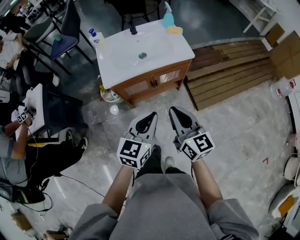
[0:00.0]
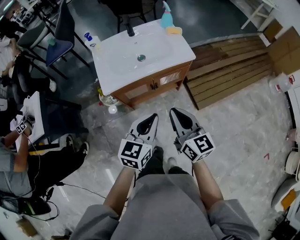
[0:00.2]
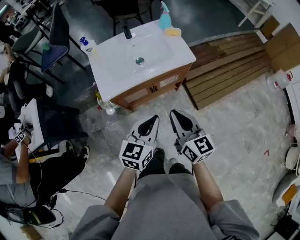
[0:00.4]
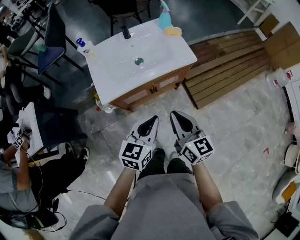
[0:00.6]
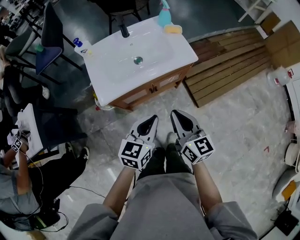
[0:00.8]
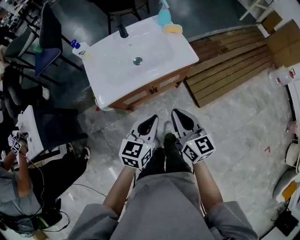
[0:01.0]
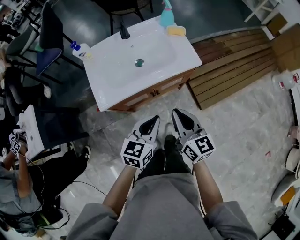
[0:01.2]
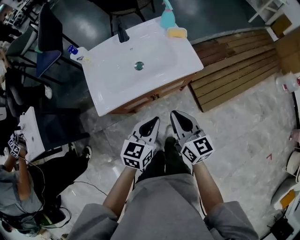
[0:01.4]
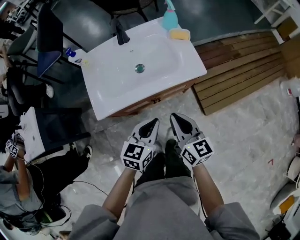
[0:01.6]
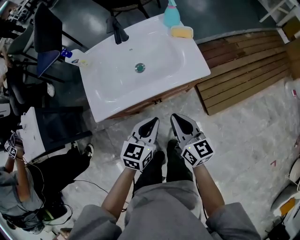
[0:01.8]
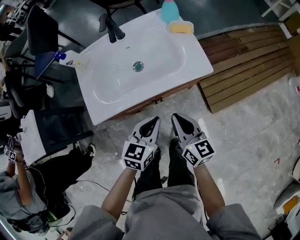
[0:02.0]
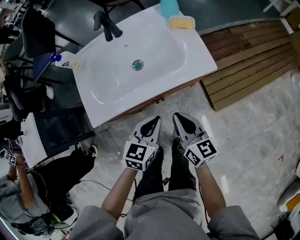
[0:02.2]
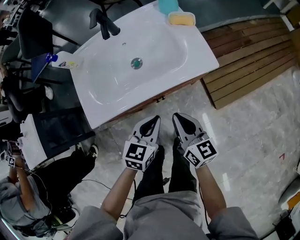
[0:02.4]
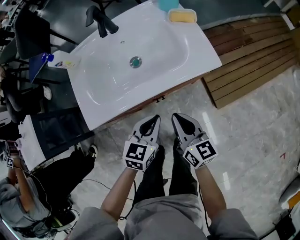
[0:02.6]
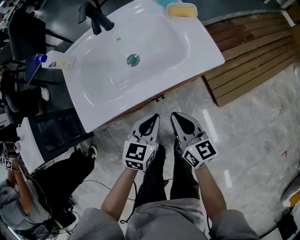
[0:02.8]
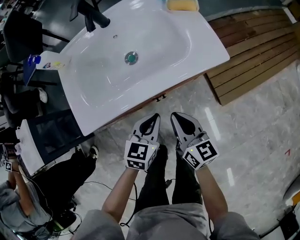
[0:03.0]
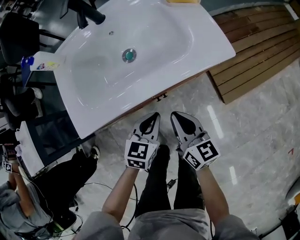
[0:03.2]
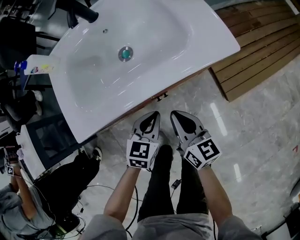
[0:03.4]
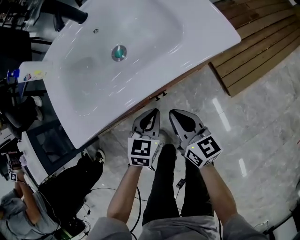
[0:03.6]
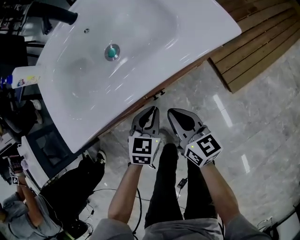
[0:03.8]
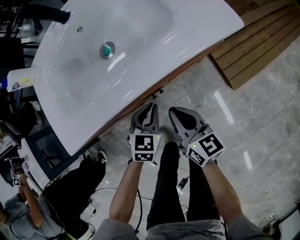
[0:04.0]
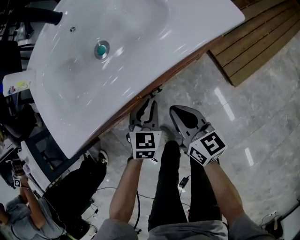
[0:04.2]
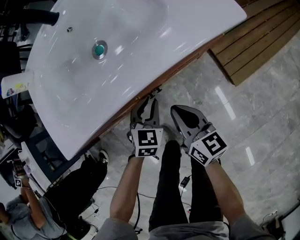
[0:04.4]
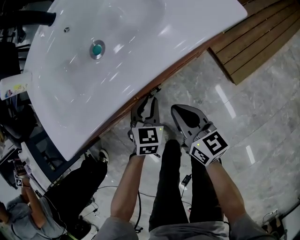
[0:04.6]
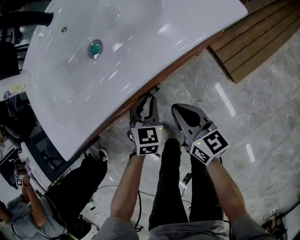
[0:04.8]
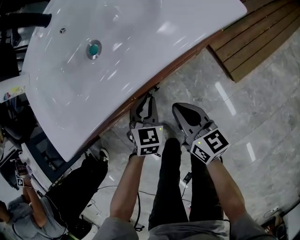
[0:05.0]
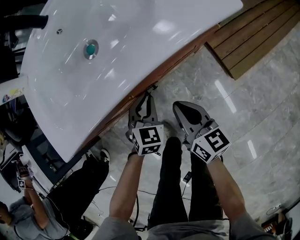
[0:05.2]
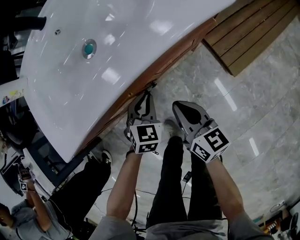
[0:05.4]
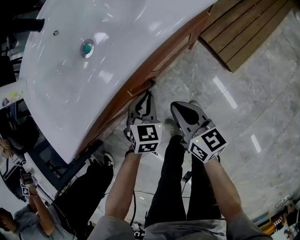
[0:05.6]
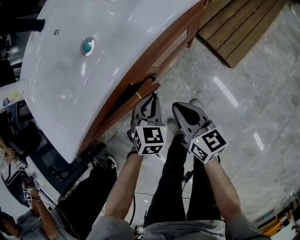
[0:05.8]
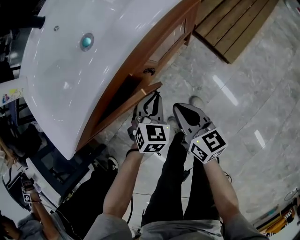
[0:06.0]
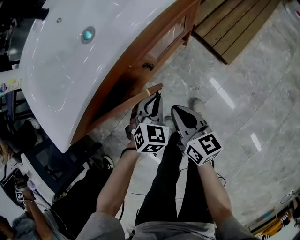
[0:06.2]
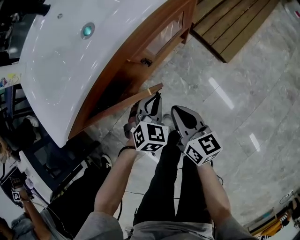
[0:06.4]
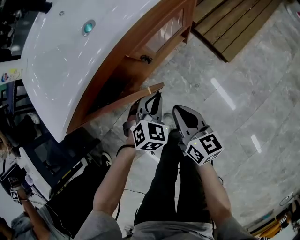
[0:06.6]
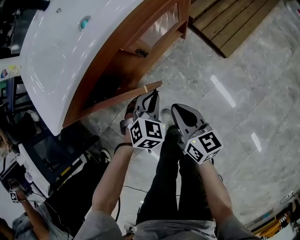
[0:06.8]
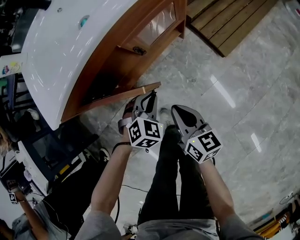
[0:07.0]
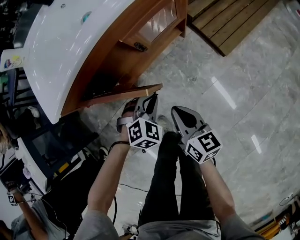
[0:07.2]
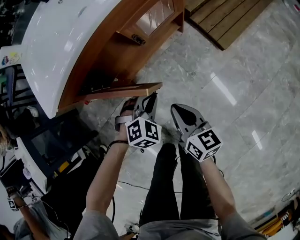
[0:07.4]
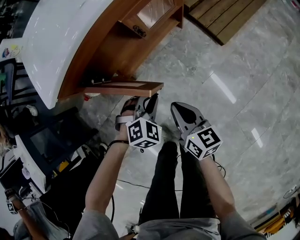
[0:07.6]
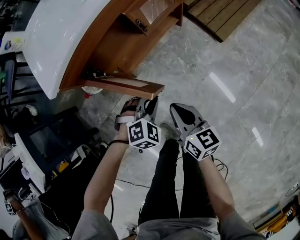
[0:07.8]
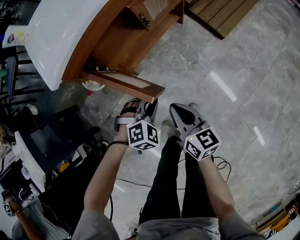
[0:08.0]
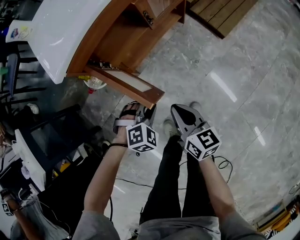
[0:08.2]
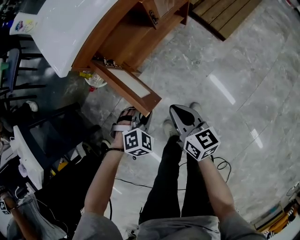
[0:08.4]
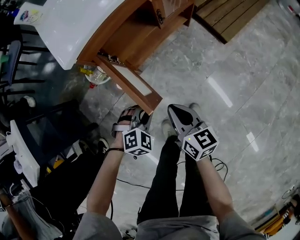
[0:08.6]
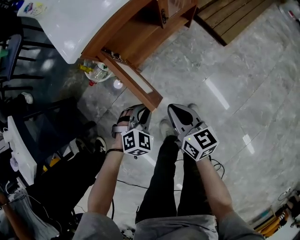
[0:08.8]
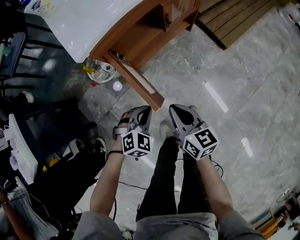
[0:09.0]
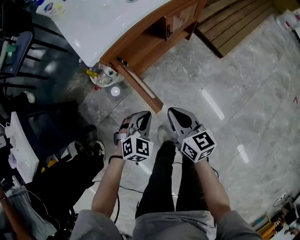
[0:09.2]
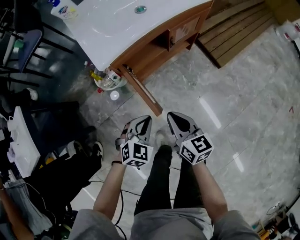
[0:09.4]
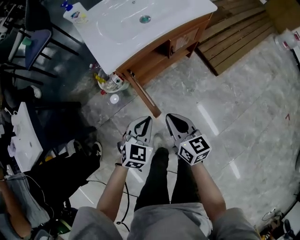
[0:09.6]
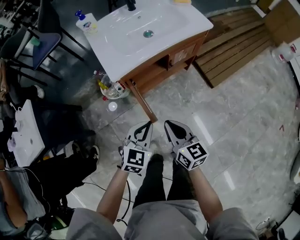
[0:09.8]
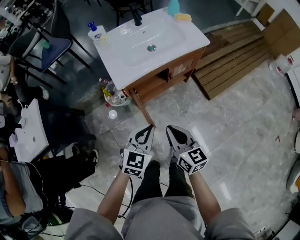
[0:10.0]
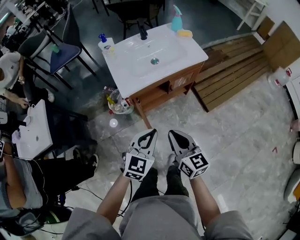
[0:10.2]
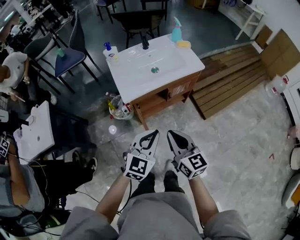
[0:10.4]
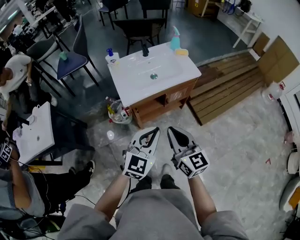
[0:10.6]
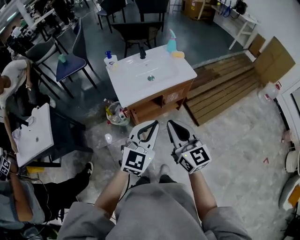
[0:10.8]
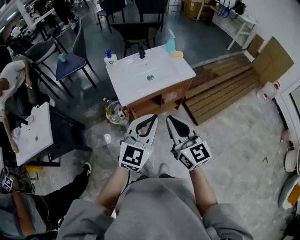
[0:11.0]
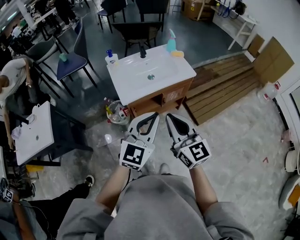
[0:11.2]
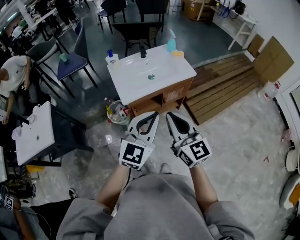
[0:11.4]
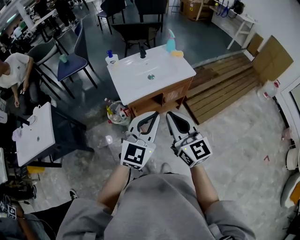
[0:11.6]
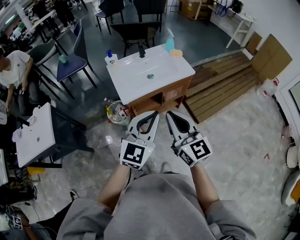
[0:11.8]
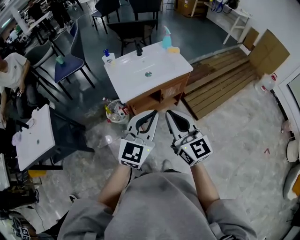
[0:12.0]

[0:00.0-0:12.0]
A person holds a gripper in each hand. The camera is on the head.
0:00.0 to 0:01.6: Both grippers move forward and downward, approximately 25 cm.
0:01.6 to 0:03.0: Both grippers travel together downward, some 15 cm.
0:03.0 to 0:04.4: The two grippers go approximately 15 cm downward. The left gripper changes its angle by approximately 20 degrees.
0:04.4 to 0:06.0: The grippers both shift backward by roughly 5 cm.
0:06.0 to 0:07.6: The grippers both shift backward by about 15 cm. The left gripper turns by approximately 30 degrees.
0:07.6 to 0:09.0: The grippers both shift to the left and backward by some 15 cm.
0:09.0 to 0:10.4: Both grippers move upward, roughly 40 cm. The right gripper changes its angle by roughly 20 degrees. Meanwhile the left gripper angles its fingers upward, by some 30 degrees.
0:10.4 to 0:12.0: The grippers both shift upward by roughly 15 cm.

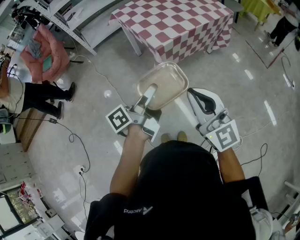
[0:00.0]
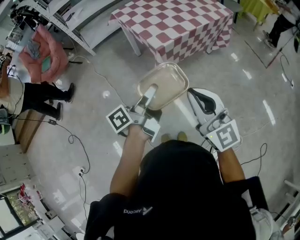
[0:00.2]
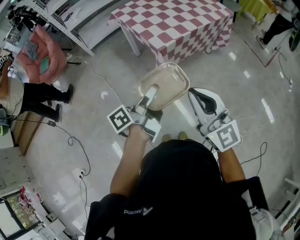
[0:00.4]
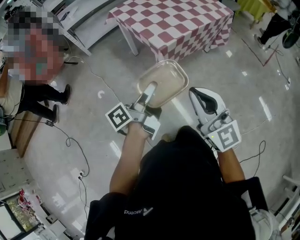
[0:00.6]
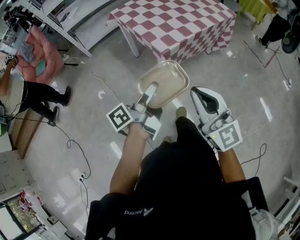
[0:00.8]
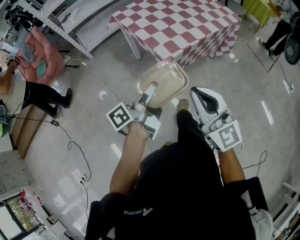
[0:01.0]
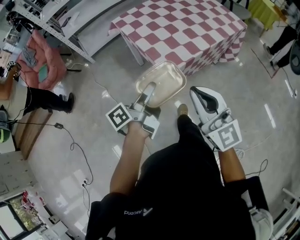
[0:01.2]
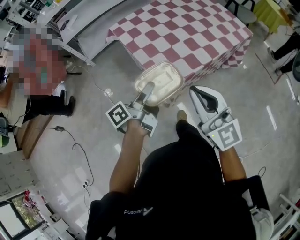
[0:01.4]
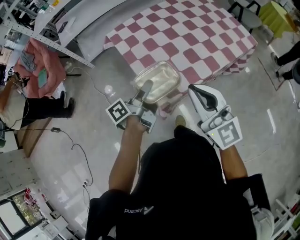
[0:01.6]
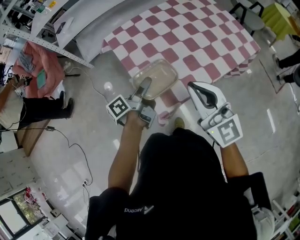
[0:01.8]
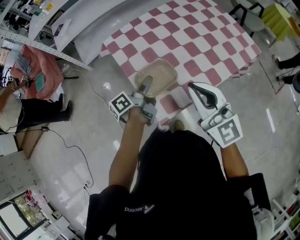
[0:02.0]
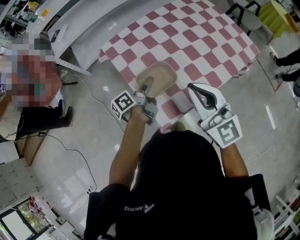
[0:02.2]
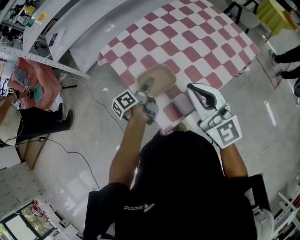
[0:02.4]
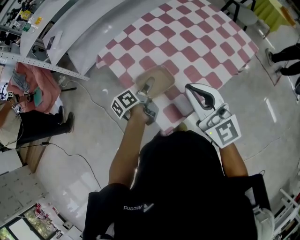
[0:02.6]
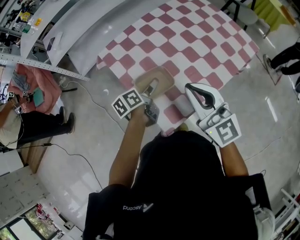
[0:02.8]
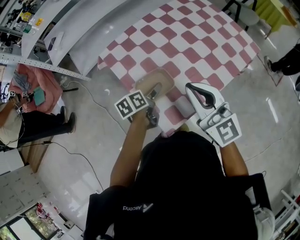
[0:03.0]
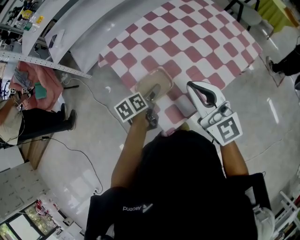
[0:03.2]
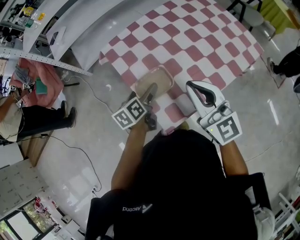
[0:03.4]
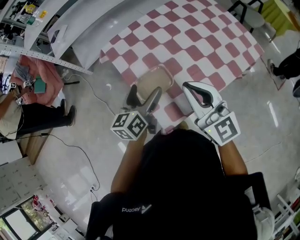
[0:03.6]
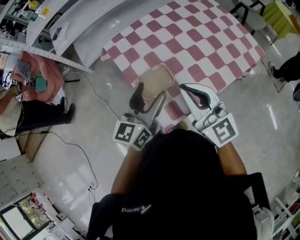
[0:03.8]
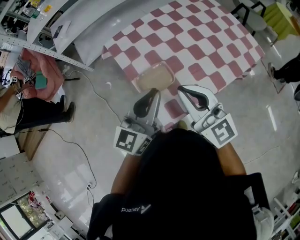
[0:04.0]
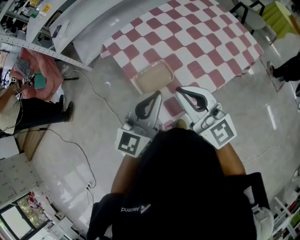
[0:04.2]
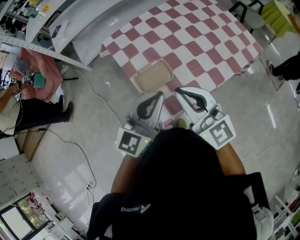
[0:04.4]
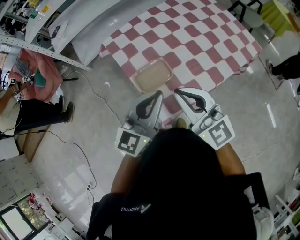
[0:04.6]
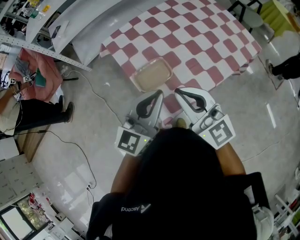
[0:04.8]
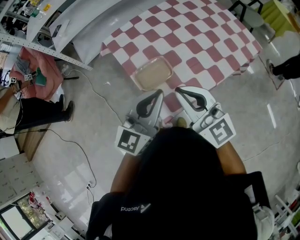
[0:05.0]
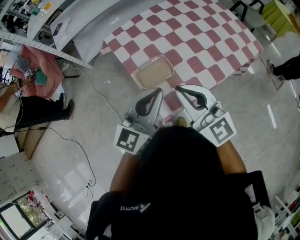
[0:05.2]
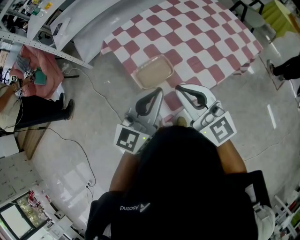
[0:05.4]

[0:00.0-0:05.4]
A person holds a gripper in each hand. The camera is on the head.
0:00.0 to 0:01.4: The grippers both shift forward by about 35 cm.
0:01.4 to 0:02.8: The left gripper heads forward and downward, covering about 30 cm, tips its fingers downward by approximately 30 degrees, and opens up; the right gripper is displaced forward by some 25 cm.
0:02.8 to 0:04.0: The left gripper heads upward and backward, covering about 20 cm, rolls clockwise, seen from behind, by approximately 50 degrees, and closes up.
0:04.0 to 0:05.4: There are only small adjustments of the grippers.

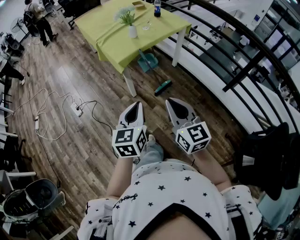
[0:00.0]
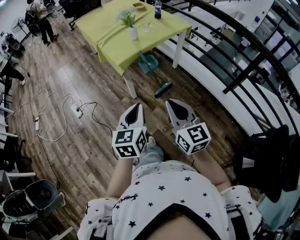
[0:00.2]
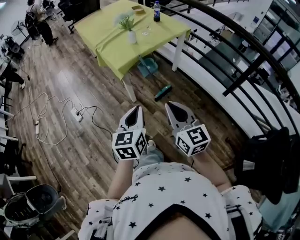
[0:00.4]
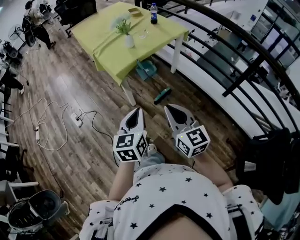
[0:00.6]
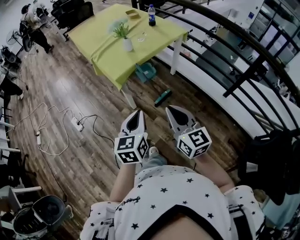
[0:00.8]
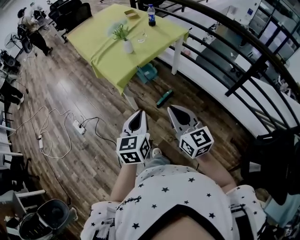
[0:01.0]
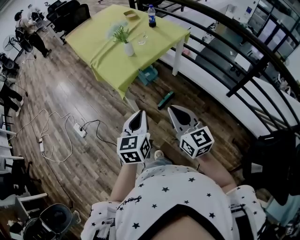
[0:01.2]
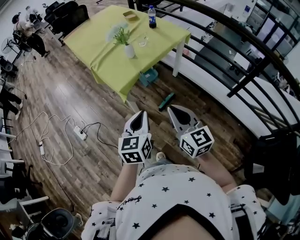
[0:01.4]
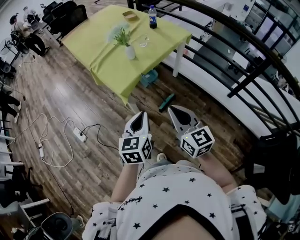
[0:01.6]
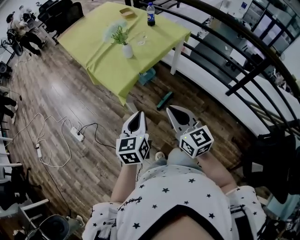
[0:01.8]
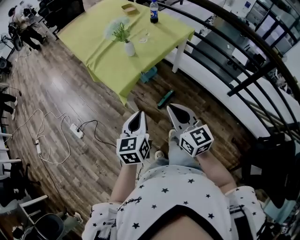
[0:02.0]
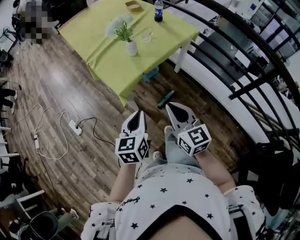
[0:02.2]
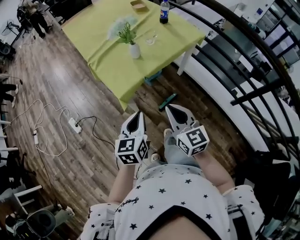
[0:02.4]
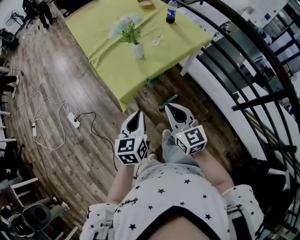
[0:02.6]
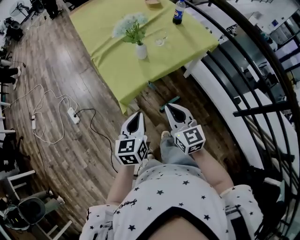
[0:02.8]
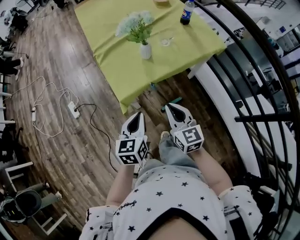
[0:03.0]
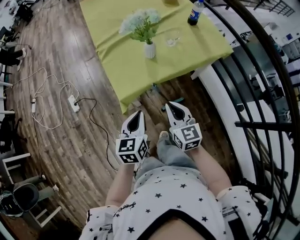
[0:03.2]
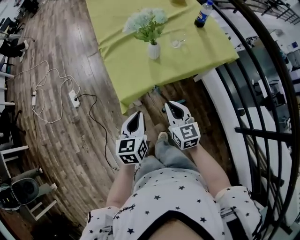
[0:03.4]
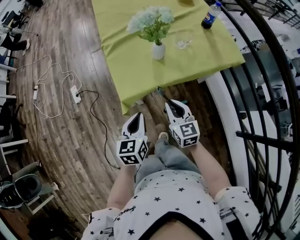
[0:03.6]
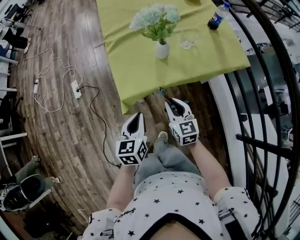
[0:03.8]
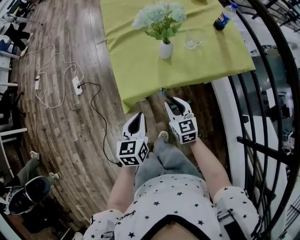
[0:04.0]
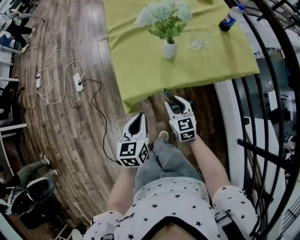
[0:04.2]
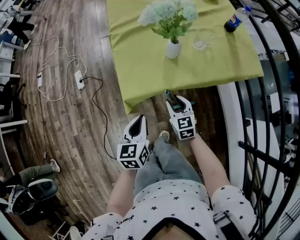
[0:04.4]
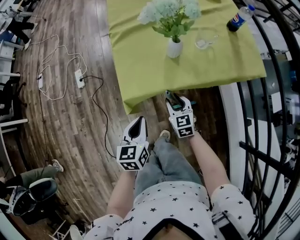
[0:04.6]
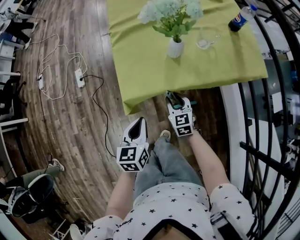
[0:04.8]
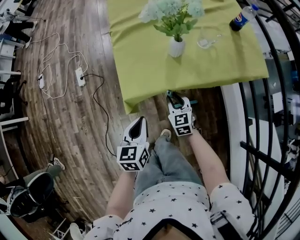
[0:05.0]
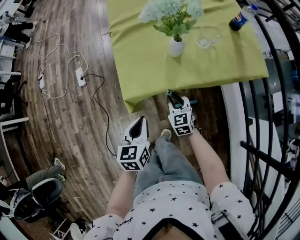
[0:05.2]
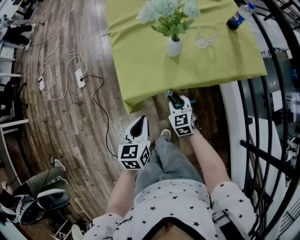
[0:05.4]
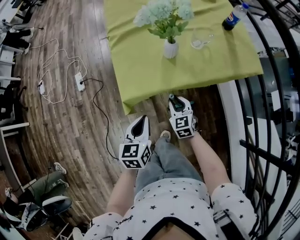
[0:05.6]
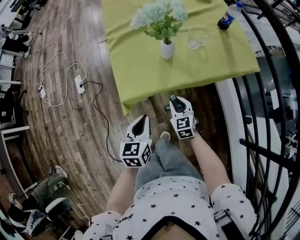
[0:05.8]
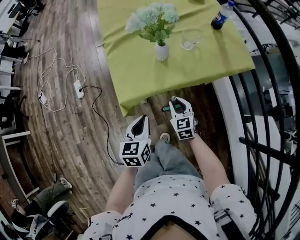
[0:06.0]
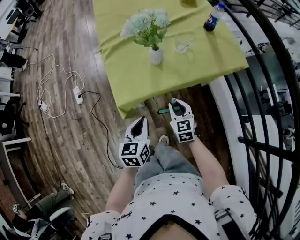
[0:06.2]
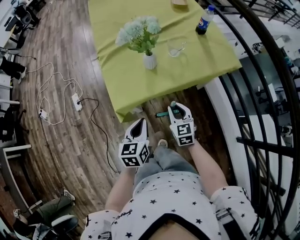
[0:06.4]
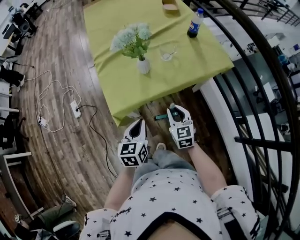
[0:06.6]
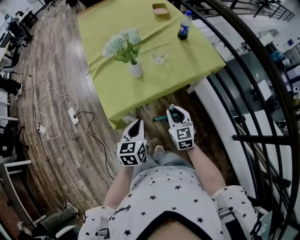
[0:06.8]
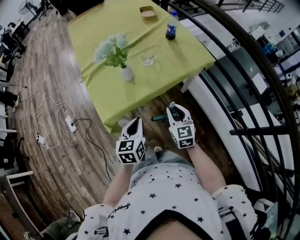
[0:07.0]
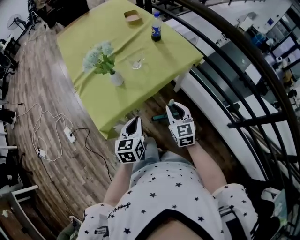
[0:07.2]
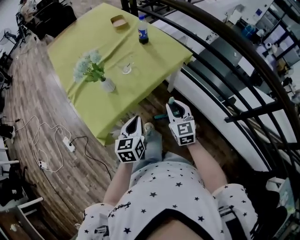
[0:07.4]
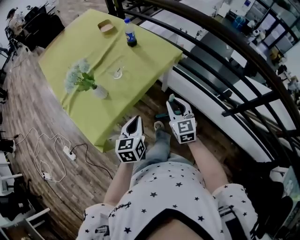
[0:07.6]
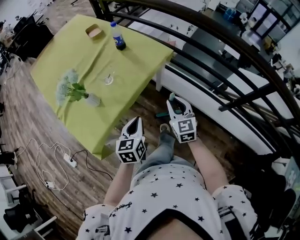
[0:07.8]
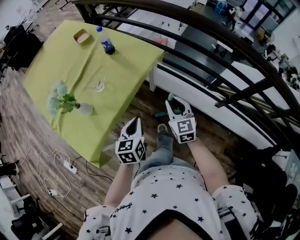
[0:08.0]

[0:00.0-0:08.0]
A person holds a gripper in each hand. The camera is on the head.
0:00.0 to 0:01.6: The two grippers go some 20 cm forward.
0:01.6 to 0:03.2: Both grippers move forward and downward, roughly 25 cm. The right gripper swivels approximately 20 degrees; the left gripper swivels some 20 degrees.
0:03.2 to 0:04.8: The right gripper is displaced downward and forward by about 25 cm, swivels about 20 degrees, and opens its fingers. The left gripper heads downward, covering about 10 cm.
0:04.8 to 0:06.4: The right gripper heads upward, to the right and backward, covering approximately 15 cm. The left gripper shifts roughly 10 cm to the right and upward.
0:06.4 to 0:08.0: The right gripper shifts by about 30 cm, and changes its angle by roughly 40 degrees. The left gripper ends up some 25 cm from where it was, and rotates approximately 30 degrees.
